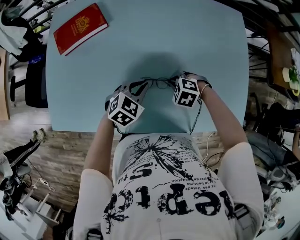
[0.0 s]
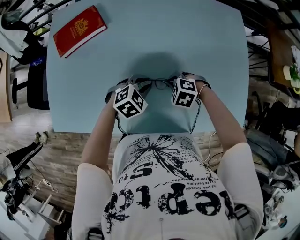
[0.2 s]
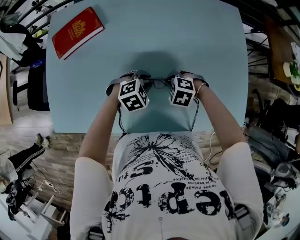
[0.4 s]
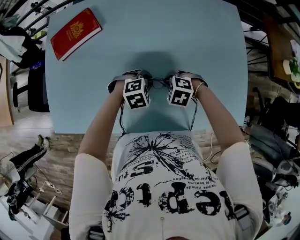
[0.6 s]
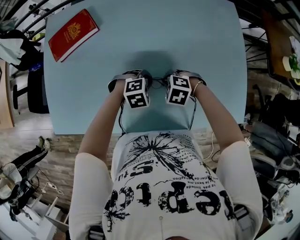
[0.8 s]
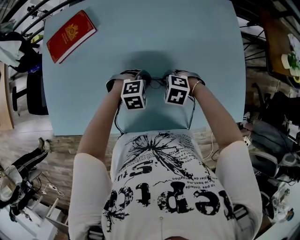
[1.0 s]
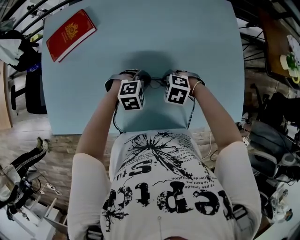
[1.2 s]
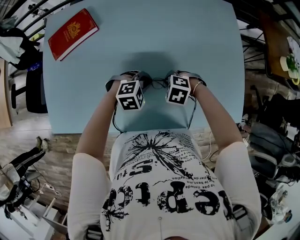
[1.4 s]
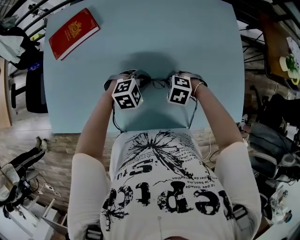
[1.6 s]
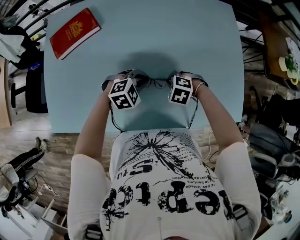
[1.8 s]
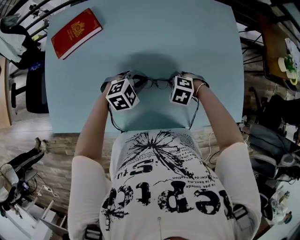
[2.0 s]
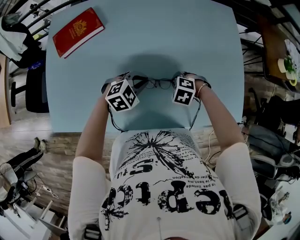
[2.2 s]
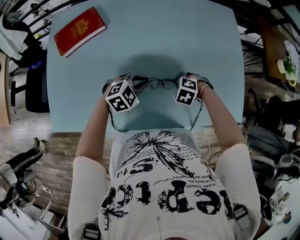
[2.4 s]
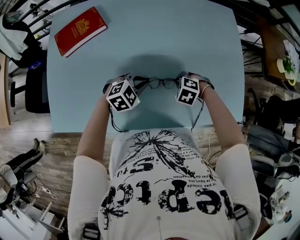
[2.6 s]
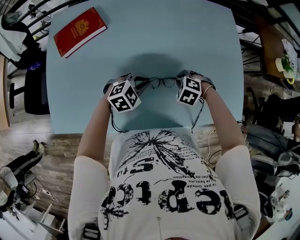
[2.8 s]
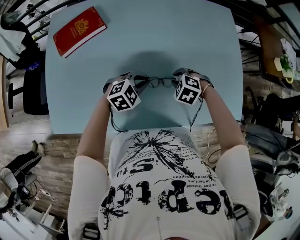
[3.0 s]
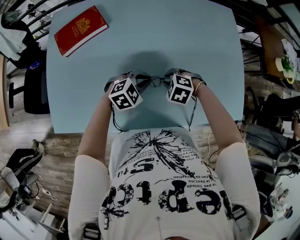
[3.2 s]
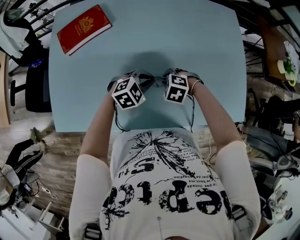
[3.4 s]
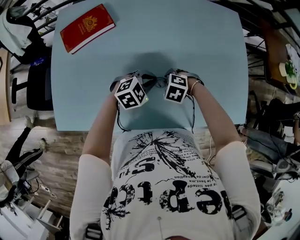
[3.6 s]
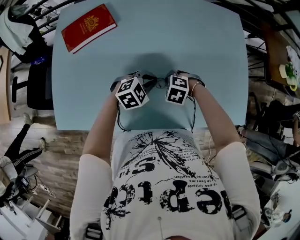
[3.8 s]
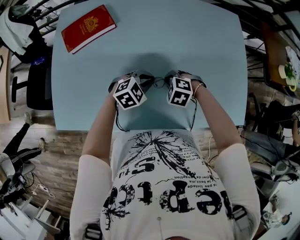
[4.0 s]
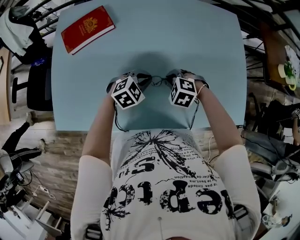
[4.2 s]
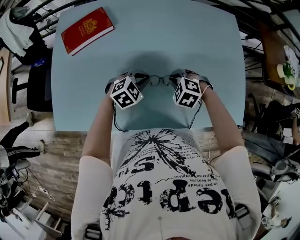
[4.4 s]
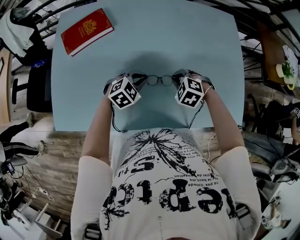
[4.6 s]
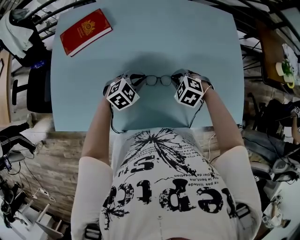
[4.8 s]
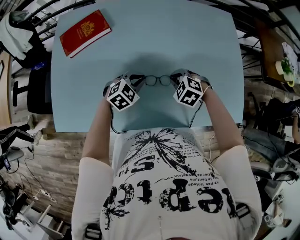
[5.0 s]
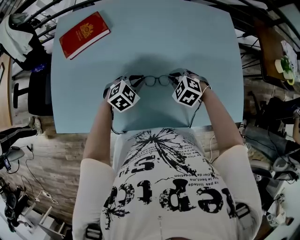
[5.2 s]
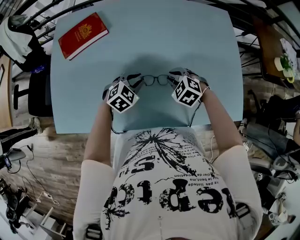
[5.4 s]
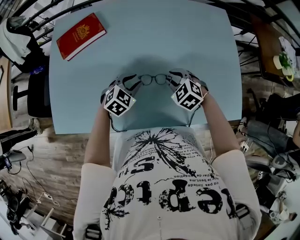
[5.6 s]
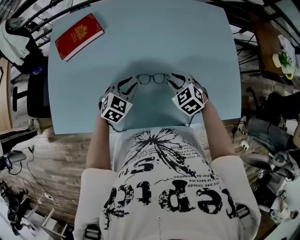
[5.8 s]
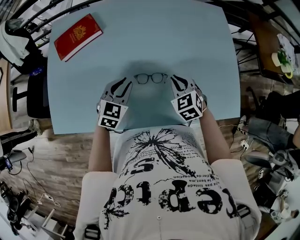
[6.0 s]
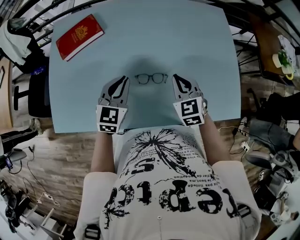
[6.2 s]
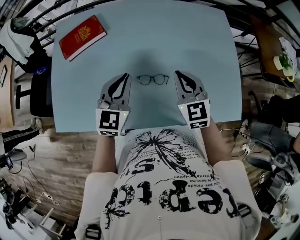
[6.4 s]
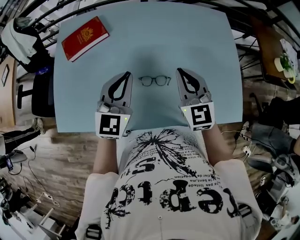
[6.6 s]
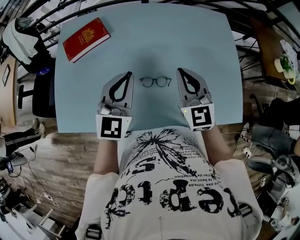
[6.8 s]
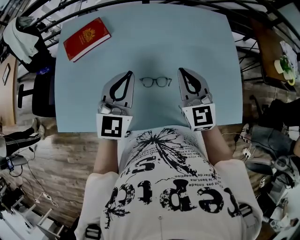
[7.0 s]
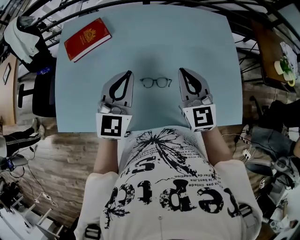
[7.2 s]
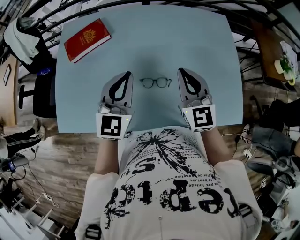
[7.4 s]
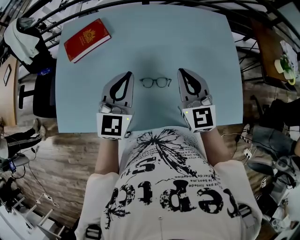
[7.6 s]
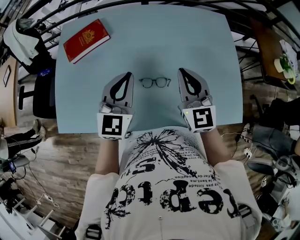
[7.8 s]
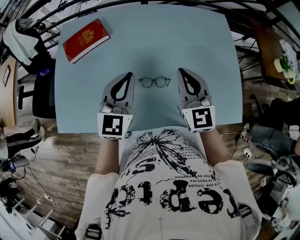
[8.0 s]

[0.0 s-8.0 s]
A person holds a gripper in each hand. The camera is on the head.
0.0 to 1.6 s: The left gripper shifts by approximately 5 cm, and rotates roughly 30 degrees.
1.6 to 3.2 s: The right gripper changes place by approximately 5 cm, while the left gripper shifts by roughly 5 cm.
3.2 to 4.8 s: The grippers make only small movements.
4.8 to 6.4 s: Both grippers move upward, about 15 cm. The left gripper angles its fingers upward, by about 30 degrees, and opens and closes again. Meanwhile the right gripper points its fingers some 50 degrees further upward, and opens and closes again.
6.4 to 8.0 s: The right gripper travels upward by approximately 5 cm.

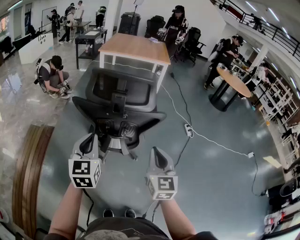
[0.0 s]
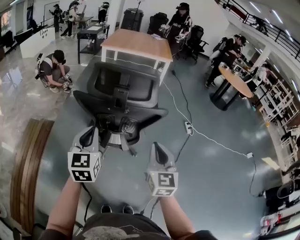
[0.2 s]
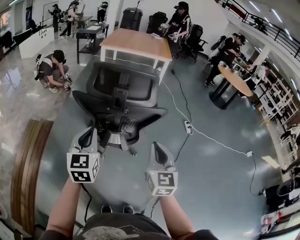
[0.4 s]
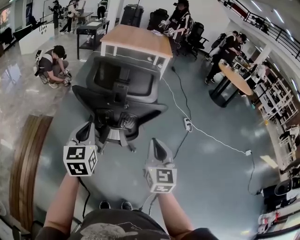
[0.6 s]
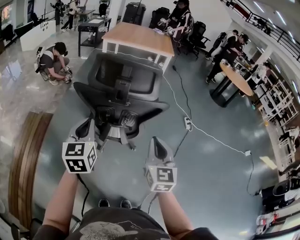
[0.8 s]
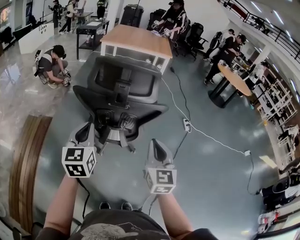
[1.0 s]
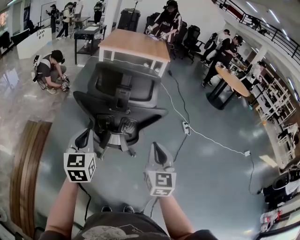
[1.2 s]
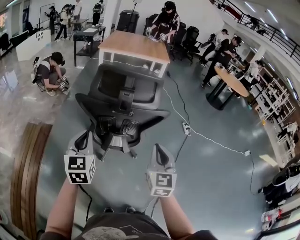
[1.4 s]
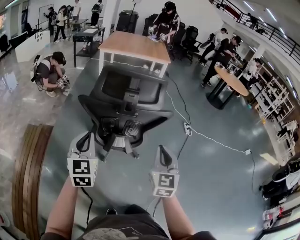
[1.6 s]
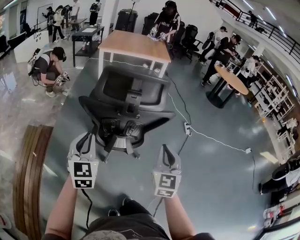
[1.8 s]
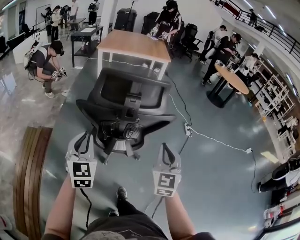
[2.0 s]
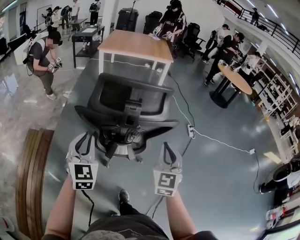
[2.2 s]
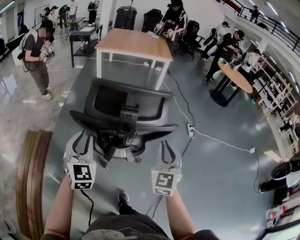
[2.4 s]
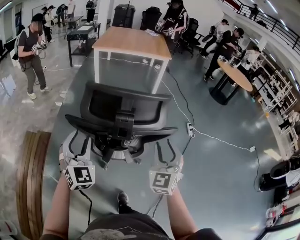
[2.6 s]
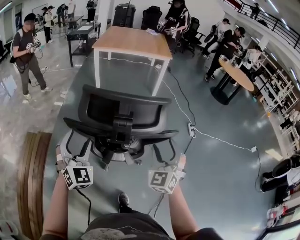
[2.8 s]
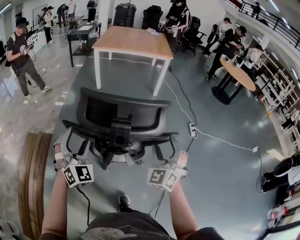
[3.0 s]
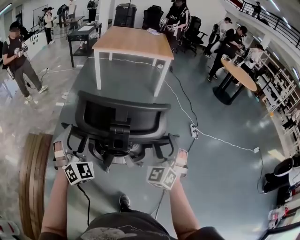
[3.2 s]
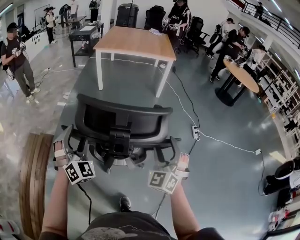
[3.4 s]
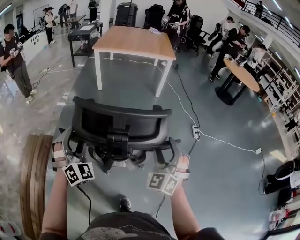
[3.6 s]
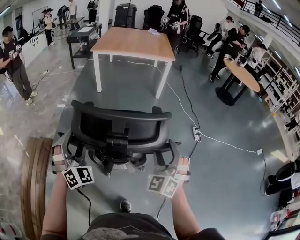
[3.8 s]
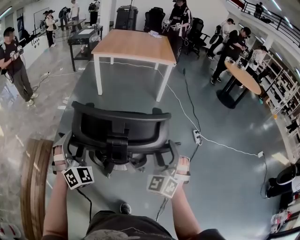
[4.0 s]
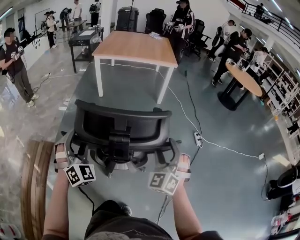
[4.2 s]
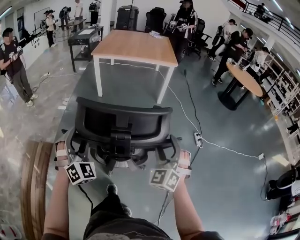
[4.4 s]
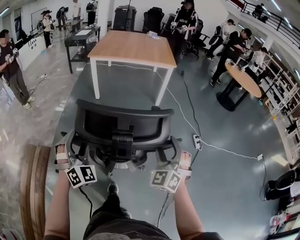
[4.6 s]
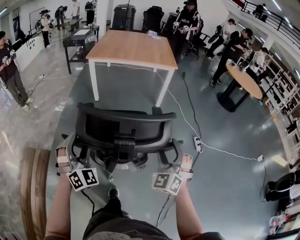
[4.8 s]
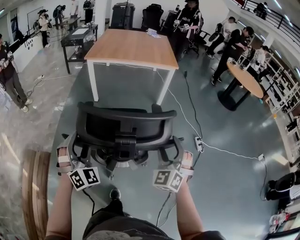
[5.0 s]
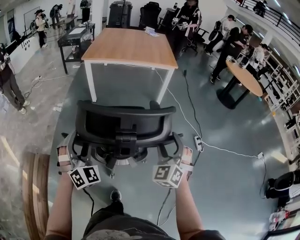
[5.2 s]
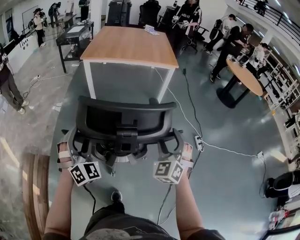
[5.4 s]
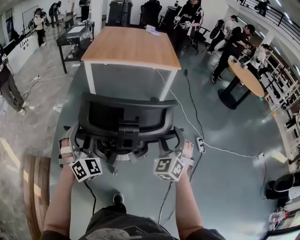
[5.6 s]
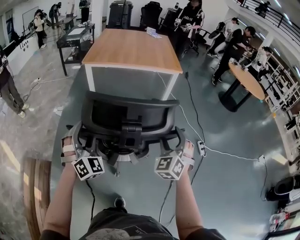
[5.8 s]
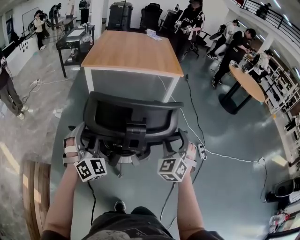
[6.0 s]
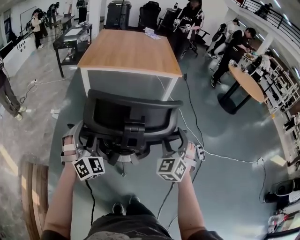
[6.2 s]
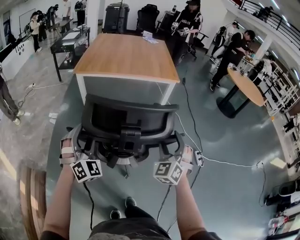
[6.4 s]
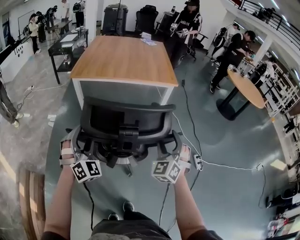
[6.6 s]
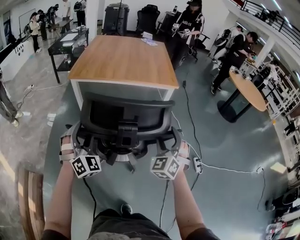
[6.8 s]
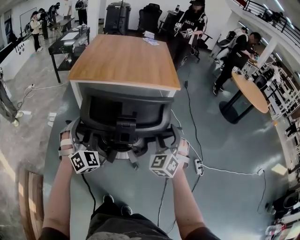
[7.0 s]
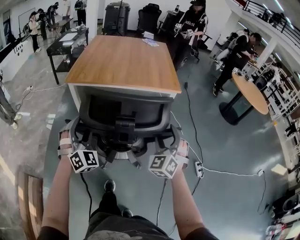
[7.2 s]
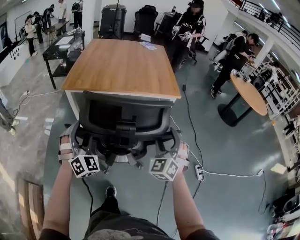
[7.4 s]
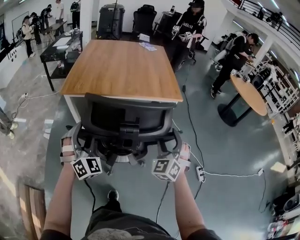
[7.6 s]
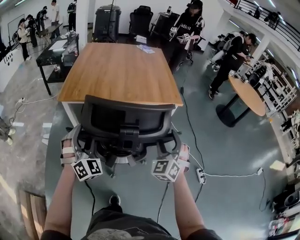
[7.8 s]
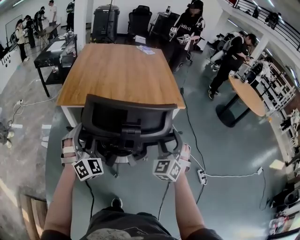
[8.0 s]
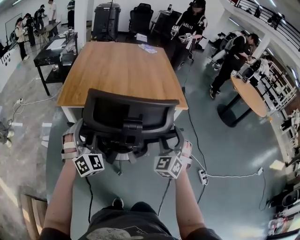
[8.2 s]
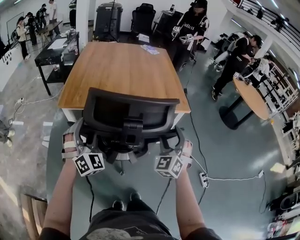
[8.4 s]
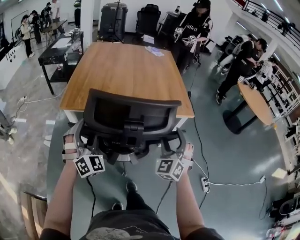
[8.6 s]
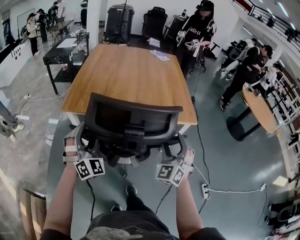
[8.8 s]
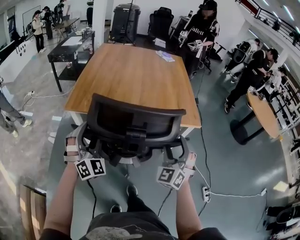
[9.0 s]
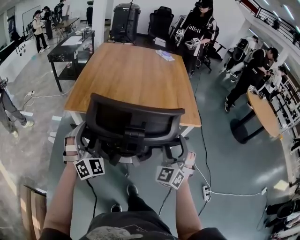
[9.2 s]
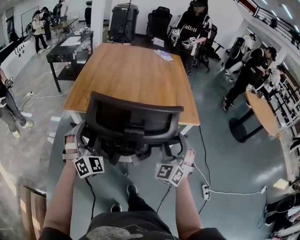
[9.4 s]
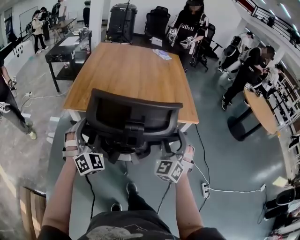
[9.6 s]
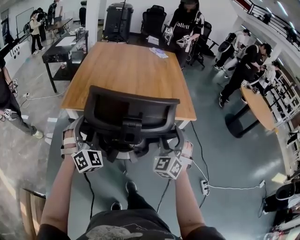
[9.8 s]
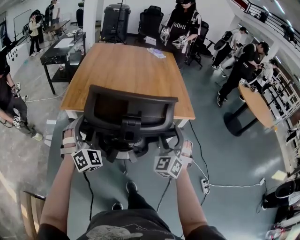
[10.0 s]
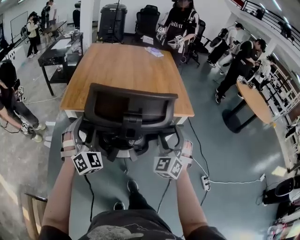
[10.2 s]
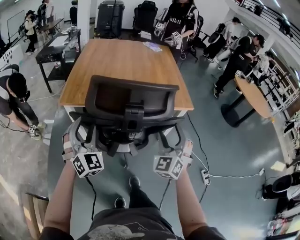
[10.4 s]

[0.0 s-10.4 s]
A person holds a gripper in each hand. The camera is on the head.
0.0 to 1.4 s: The left gripper changes place by roughly 5 cm.
1.4 to 3.0 s: The grippers both shift forward by roughly 15 cm. The left gripper rolls clockwise, seen from behind, by roughly 50 degrees, and opens up; the right gripper turns by approximately 40 degrees, and opens up.
3.0 to 4.4 s: Both grippers move forward, roughly 10 cm.
4.4 to 6.0 s: Both grippers travel together forward, some 30 cm.
6.0 to 7.4 s: Both grippers move forward, some 25 cm.
7.4 to 9.0 s: The two grippers go some 20 cm forward.
9.0 to 10.4 s: There are only small adjustments of the grippers.

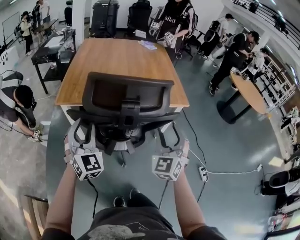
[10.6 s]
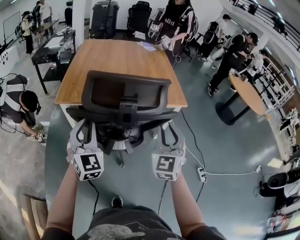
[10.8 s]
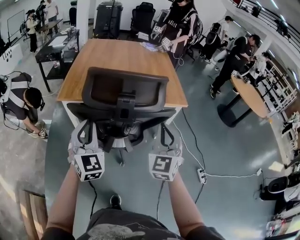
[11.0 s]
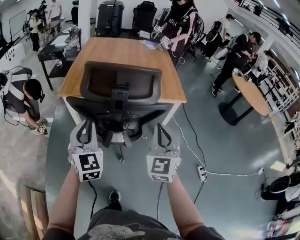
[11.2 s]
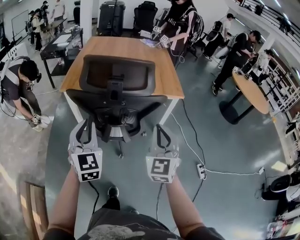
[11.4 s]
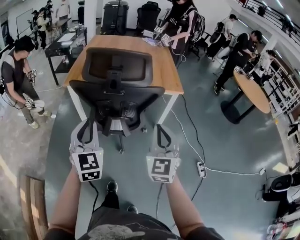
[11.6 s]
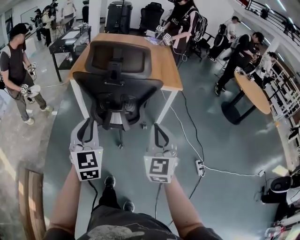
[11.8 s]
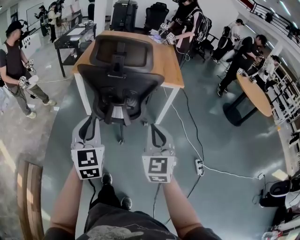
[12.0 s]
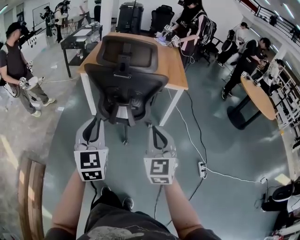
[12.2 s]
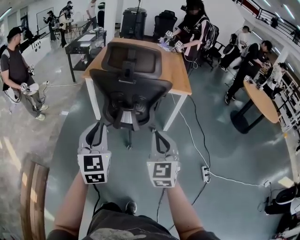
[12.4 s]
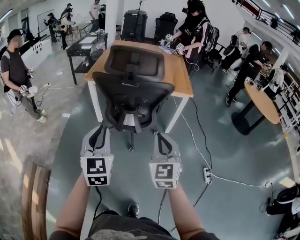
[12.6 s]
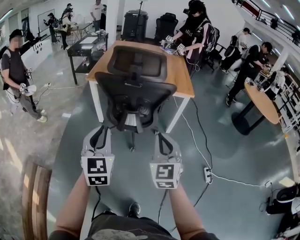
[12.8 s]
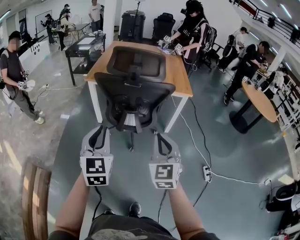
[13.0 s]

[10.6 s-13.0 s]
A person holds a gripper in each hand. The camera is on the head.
10.6 to 11.8 s: The right gripper shifts about 20 cm backward, turns by roughly 20 degrees, and closes up. The left gripper shifts approximately 25 cm backward and to the right, and turns by some 20 degrees.
11.8 to 13.0 s: Both grippers move backward, approximately 5 cm.

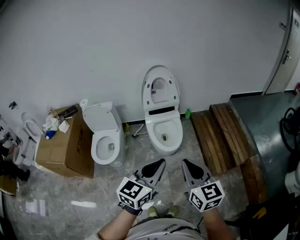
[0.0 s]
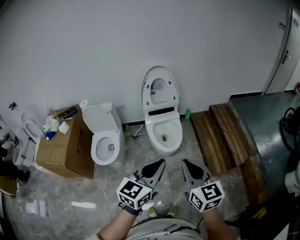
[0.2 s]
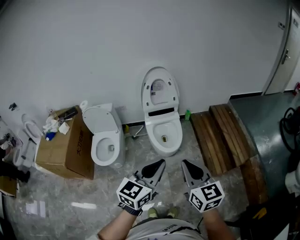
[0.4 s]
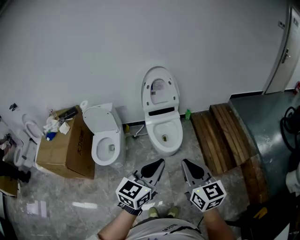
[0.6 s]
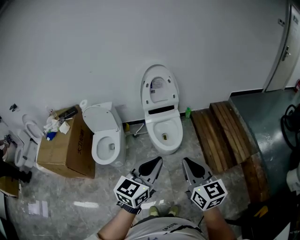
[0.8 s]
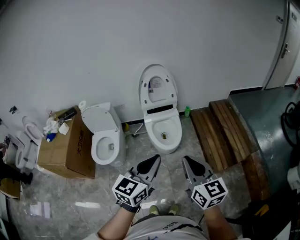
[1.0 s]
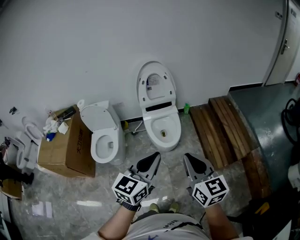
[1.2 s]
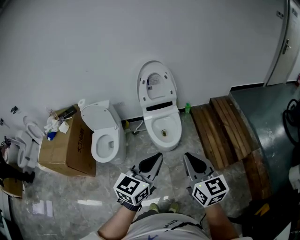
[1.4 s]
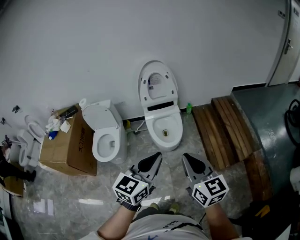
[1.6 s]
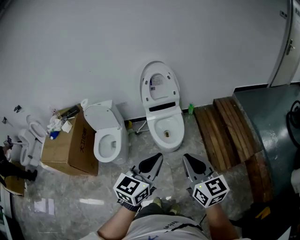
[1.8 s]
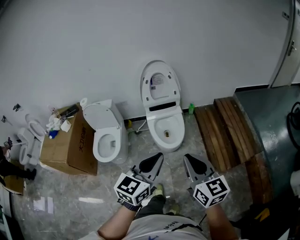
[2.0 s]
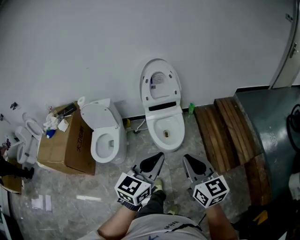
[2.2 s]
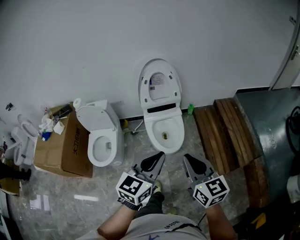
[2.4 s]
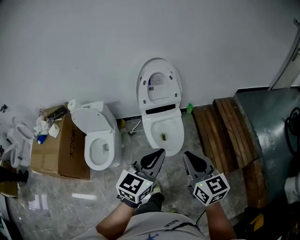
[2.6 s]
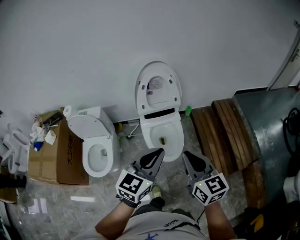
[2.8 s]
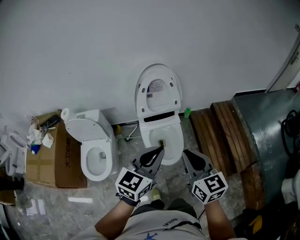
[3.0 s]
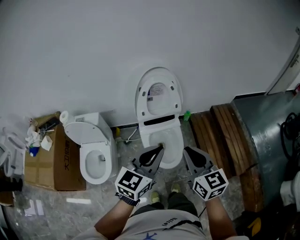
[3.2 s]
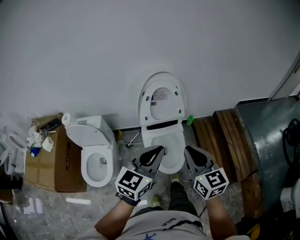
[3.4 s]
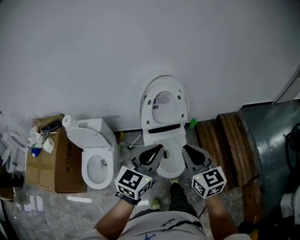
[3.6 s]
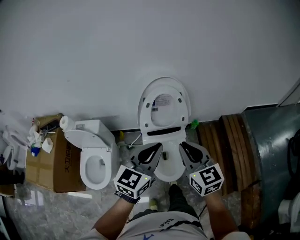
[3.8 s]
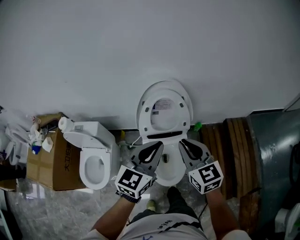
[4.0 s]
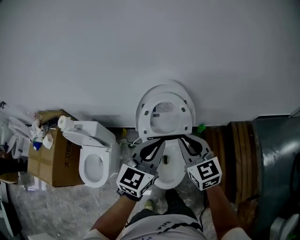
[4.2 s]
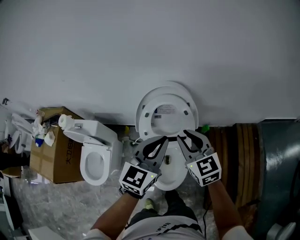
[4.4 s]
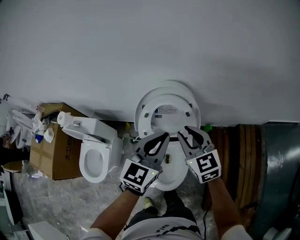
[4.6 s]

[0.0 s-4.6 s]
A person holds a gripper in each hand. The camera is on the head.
0.0 to 1.6 s: The right gripper travels to the right by approximately 5 cm.
1.6 to 3.0 s: The two grippers go some 30 cm forward.
3.0 to 4.6 s: Both grippers are carried forward, roughly 40 cm. The right gripper changes its angle by some 20 degrees.
